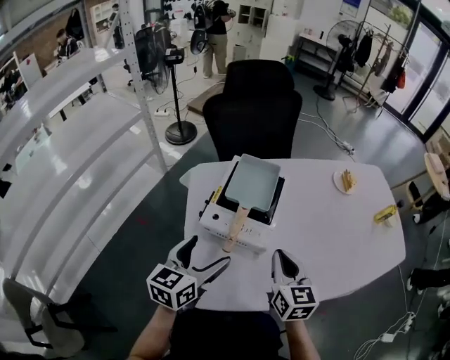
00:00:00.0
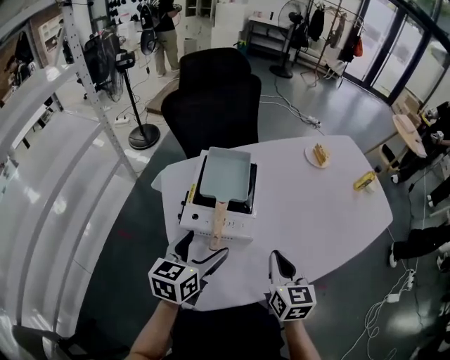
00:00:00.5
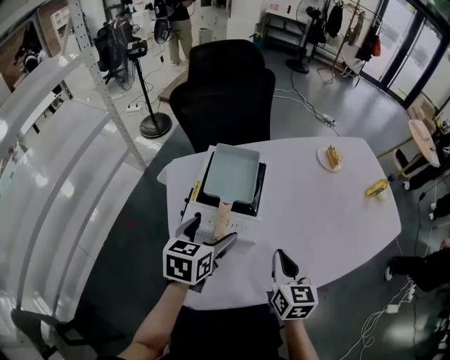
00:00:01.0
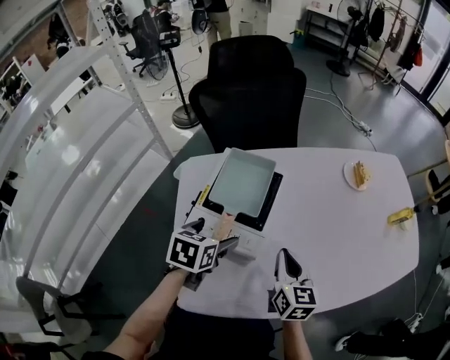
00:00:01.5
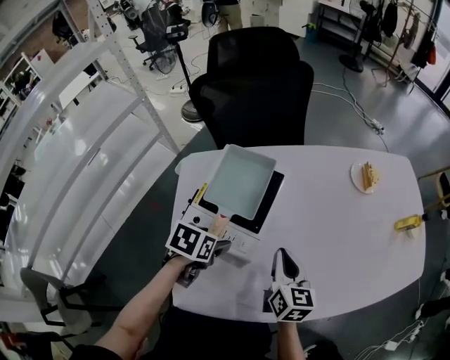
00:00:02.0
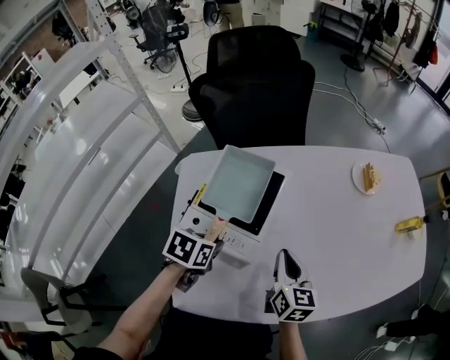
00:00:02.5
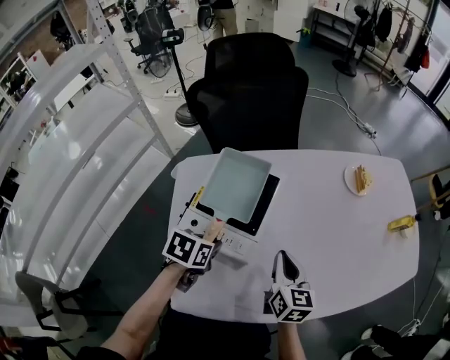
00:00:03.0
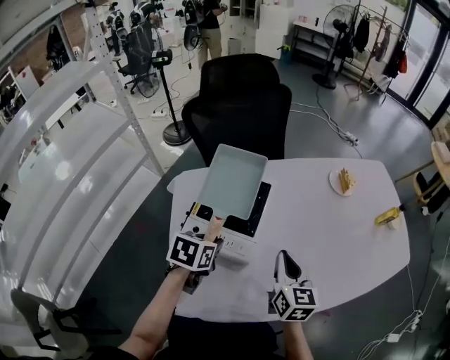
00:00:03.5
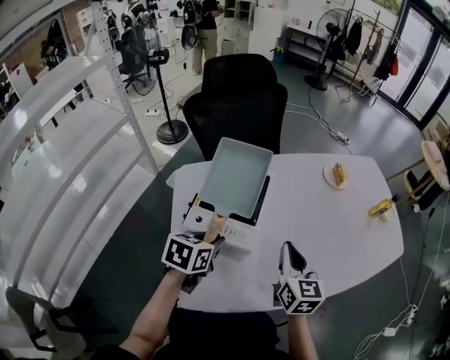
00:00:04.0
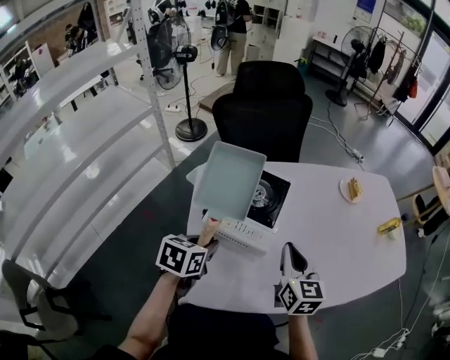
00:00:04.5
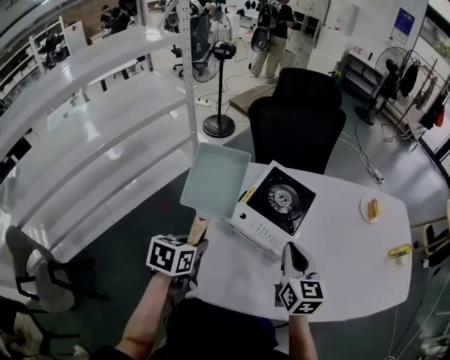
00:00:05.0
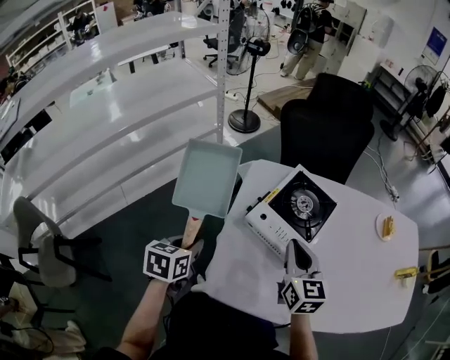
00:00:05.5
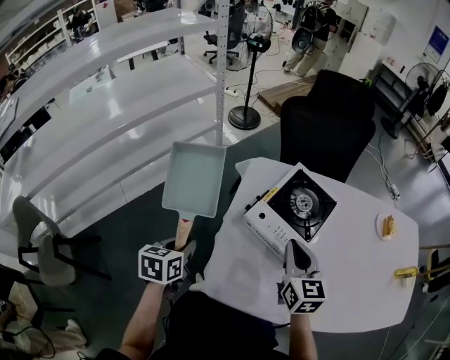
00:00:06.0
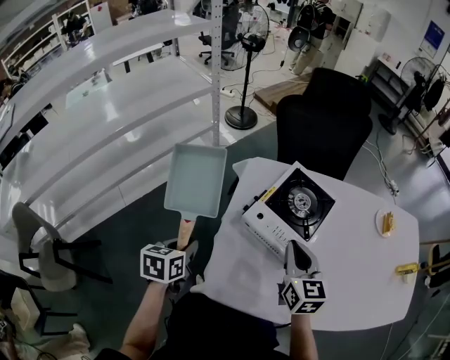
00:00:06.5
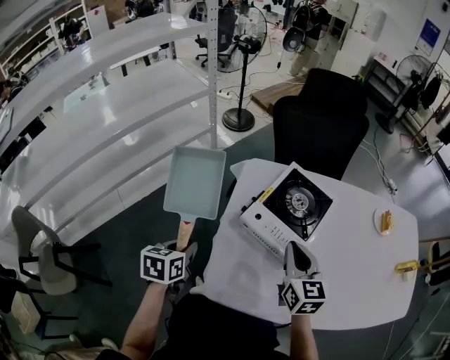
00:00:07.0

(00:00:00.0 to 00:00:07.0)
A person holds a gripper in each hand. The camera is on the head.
00:00:00.0 - 00:00:02.0: The right gripper goes approximately 15 cm forward, downward and to the right. Meanwhile the left gripper travels downward and forward by about 15 cm, and angles its fingers downward, by some 50 degrees.
00:00:02.0 - 00:00:03.5: The left gripper closes up; the right gripper moves upward, roughly 5 cm.
00:00:03.5 - 00:00:05.0: The left gripper travels to the left and backward by some 20 cm. The right gripper shifts roughly 10 cm to the left.
00:00:05.0 - 00:00:07.0: The left gripper goes roughly 5 cm to the left.

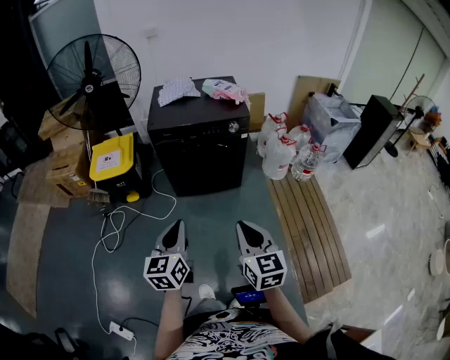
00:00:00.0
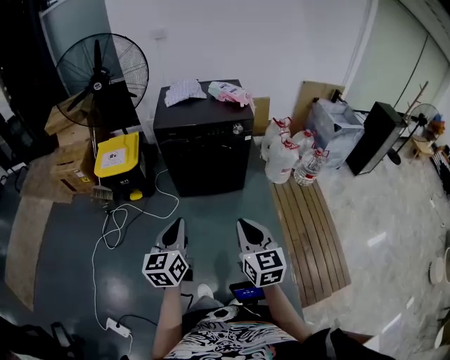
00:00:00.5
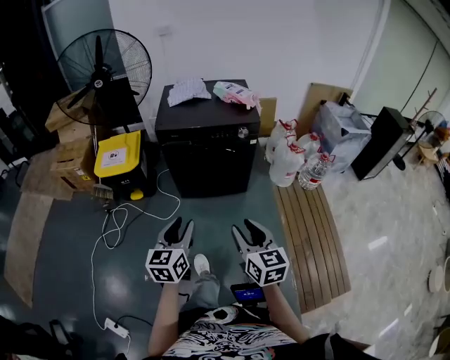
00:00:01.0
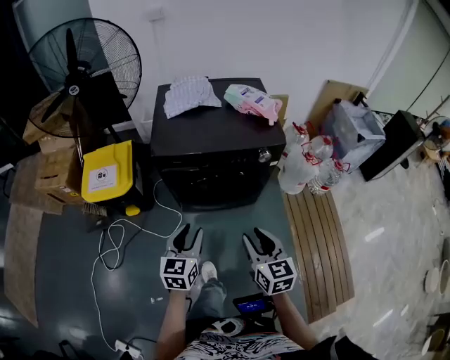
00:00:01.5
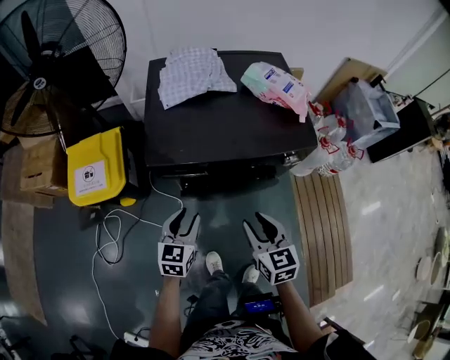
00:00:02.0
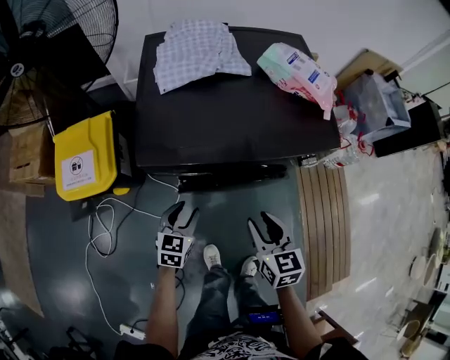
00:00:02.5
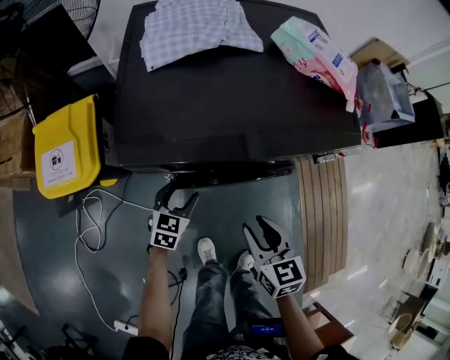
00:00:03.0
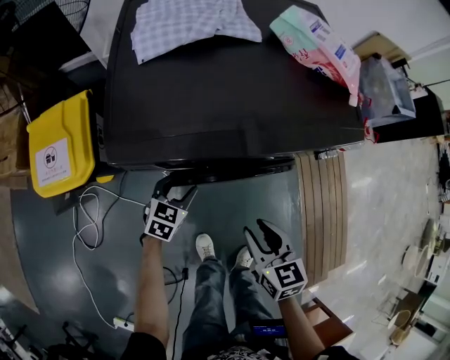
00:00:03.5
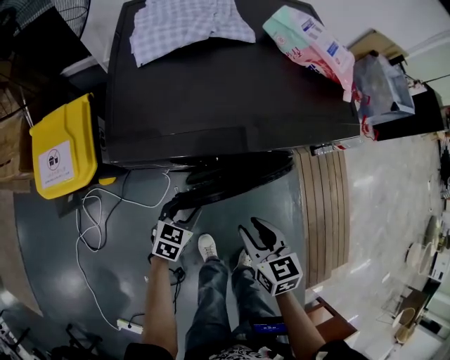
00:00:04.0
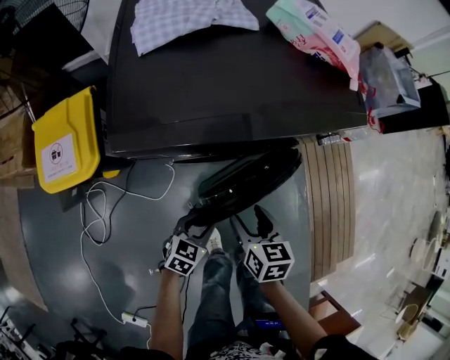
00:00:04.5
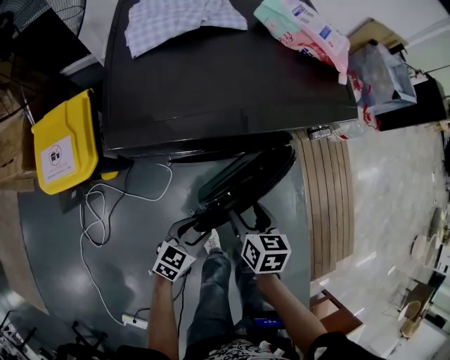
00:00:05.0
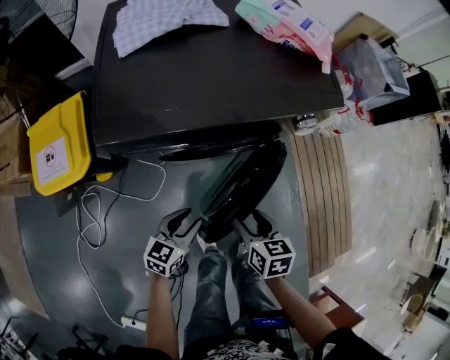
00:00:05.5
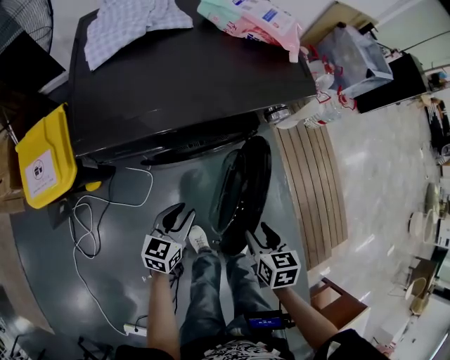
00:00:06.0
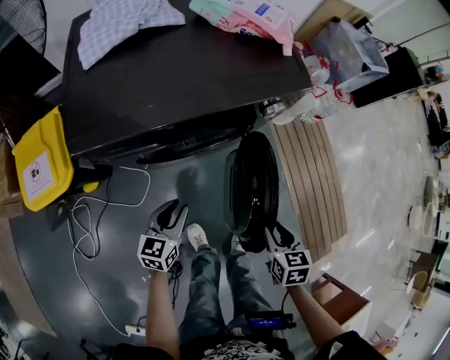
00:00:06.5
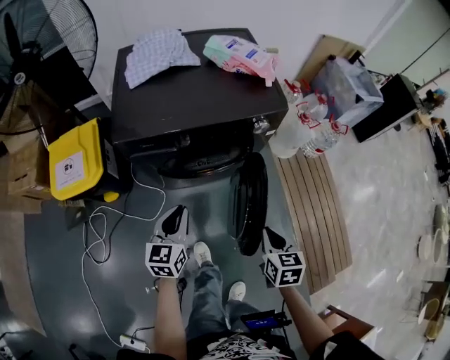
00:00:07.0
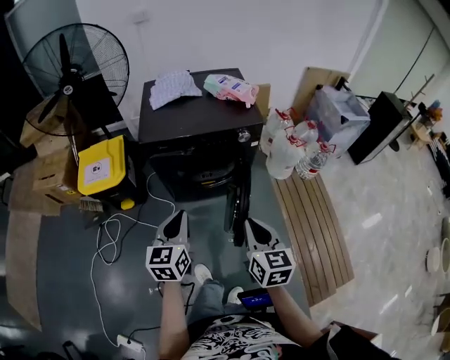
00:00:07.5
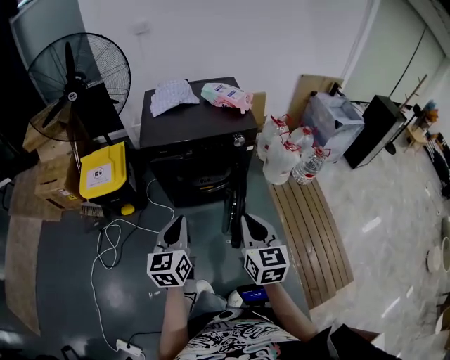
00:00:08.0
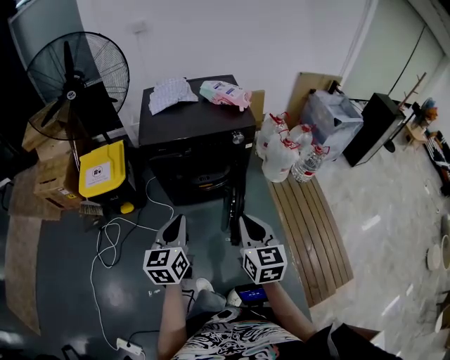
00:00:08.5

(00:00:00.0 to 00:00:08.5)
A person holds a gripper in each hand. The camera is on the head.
00:00:00.0 - 00:00:02.0: Both grippers are carried forward, about 40 cm. The right gripper opens up. The left gripper heads downward, covering roughly 20 cm, swivels about 20 degrees, and opens.
00:00:02.0 - 00:00:04.0: The left gripper moves downward, approximately 20 cm, and swivels approximately 20 degrees. Meanwhile the right gripper heads downward, covering approximately 15 cm.
00:00:04.0 - 00:00:06.5: The right gripper moves to the right and backward, roughly 20 cm, rotates some 30 degrees, and opens and closes again. Meanwhile the left gripper moves to the right and upward, some 10 cm.
00:00:06.5 - 00:00:08.5: The grippers both shift upward and backward by roughly 35 cm. The left gripper changes its angle by some 30 degrees, and closes its fingers. Meanwhile the right gripper tilts its fingers some 40 degrees upward, and closes its fingers.

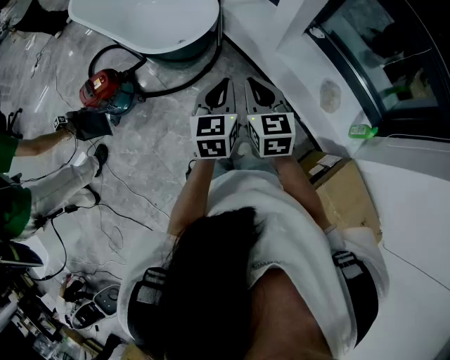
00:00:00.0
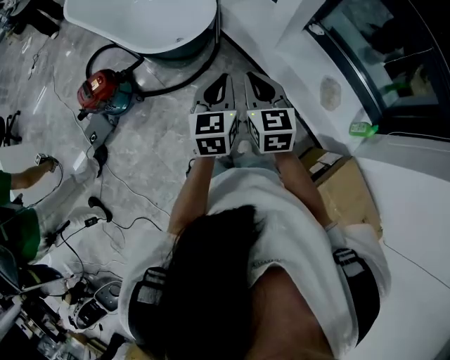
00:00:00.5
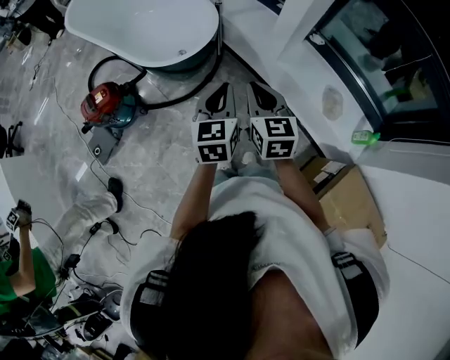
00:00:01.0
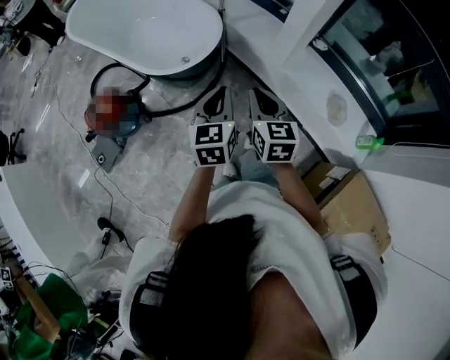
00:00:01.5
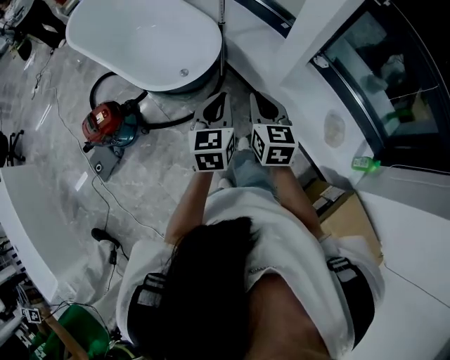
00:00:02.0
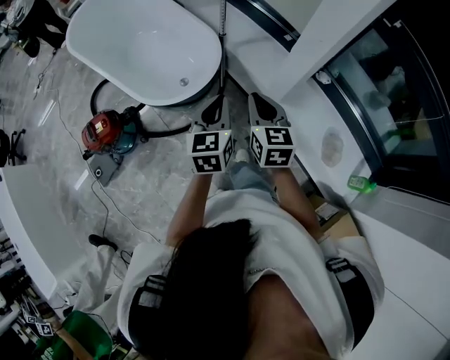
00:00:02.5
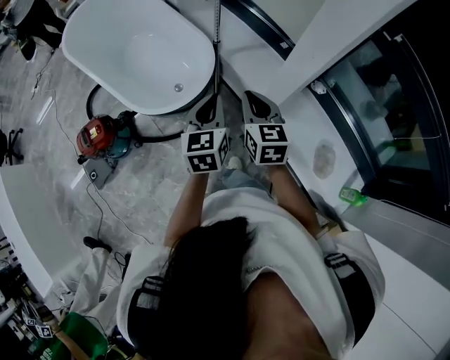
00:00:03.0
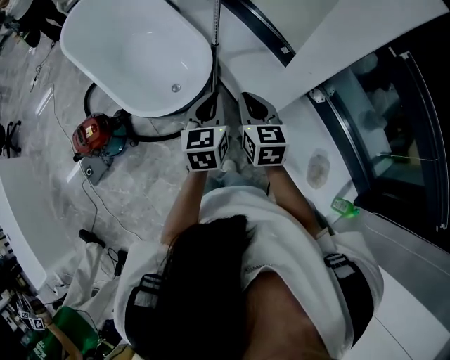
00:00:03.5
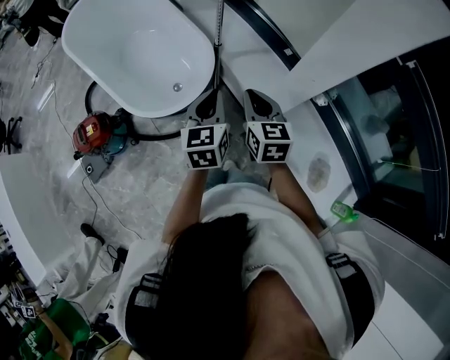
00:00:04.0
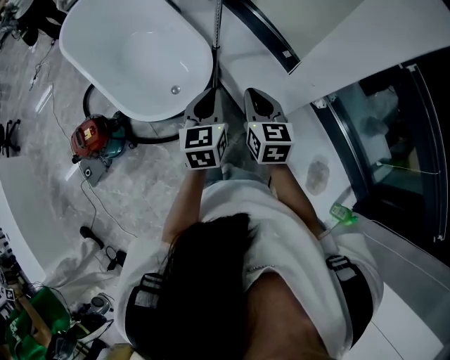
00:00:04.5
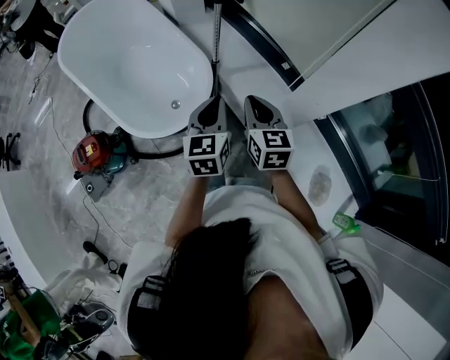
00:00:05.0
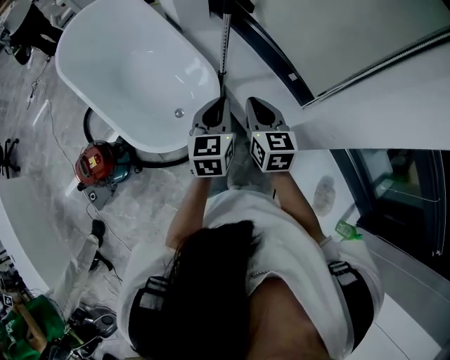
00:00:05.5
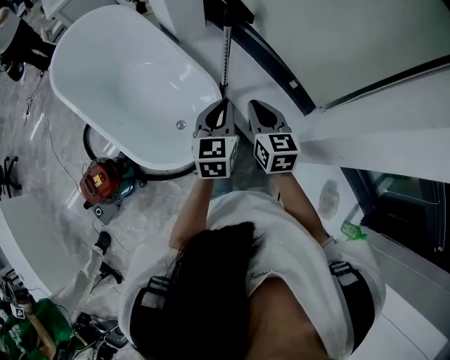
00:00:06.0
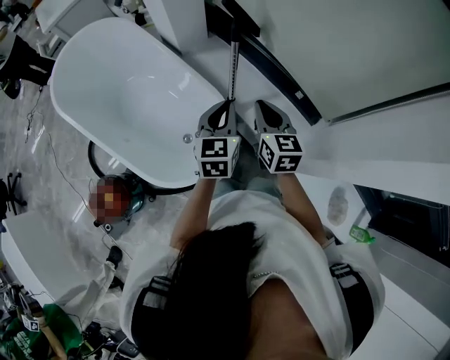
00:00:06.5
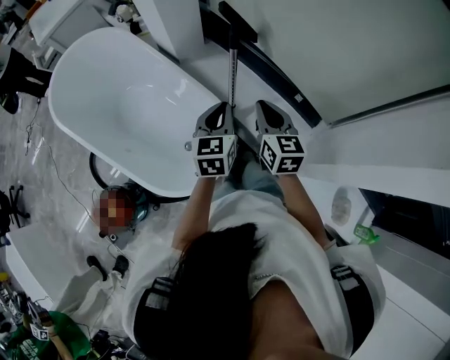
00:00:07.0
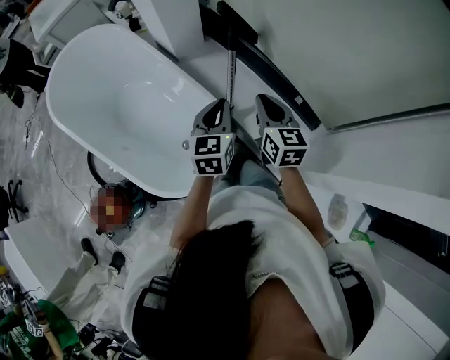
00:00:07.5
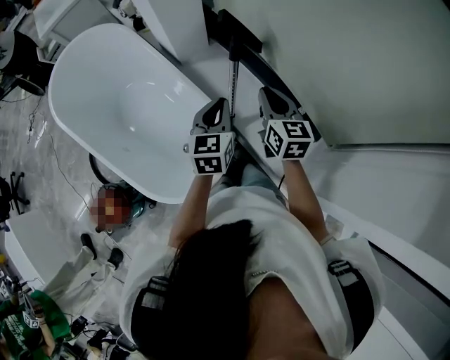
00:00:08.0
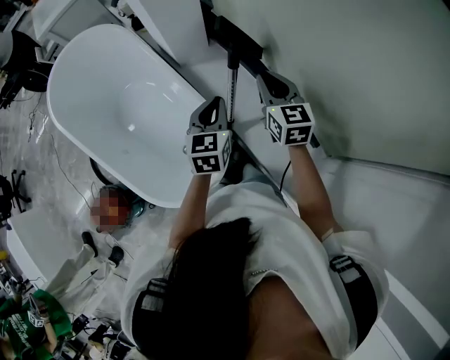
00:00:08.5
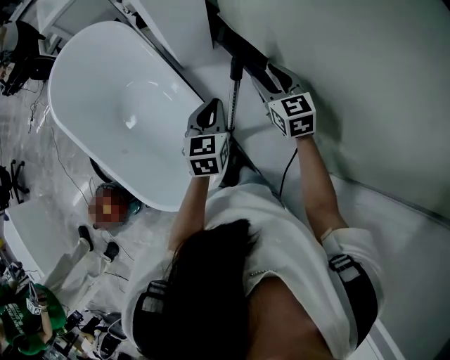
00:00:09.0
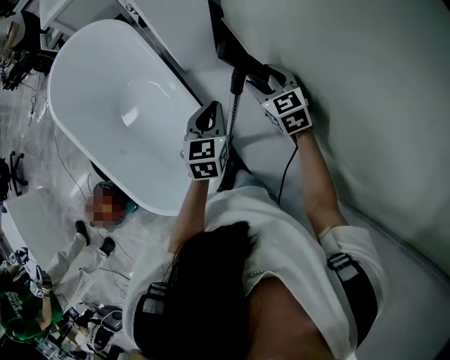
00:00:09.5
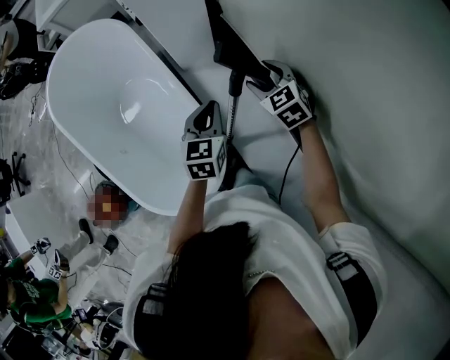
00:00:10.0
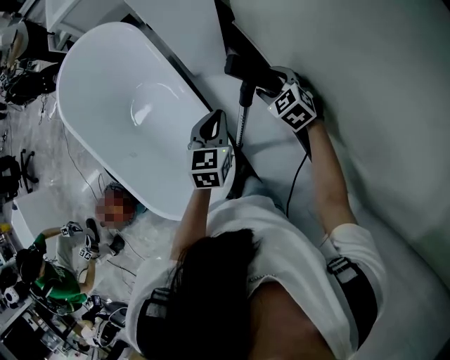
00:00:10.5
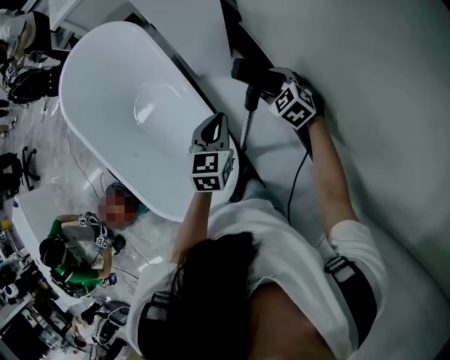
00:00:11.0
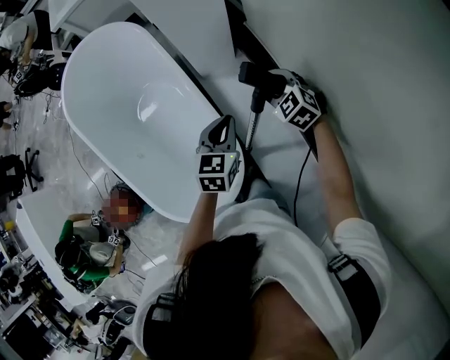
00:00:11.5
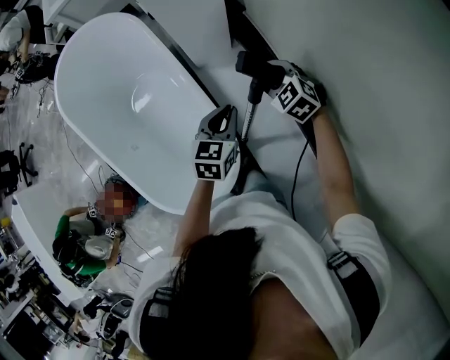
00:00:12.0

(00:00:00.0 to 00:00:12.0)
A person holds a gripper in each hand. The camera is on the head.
00:00:00.0 - 00:00:02.0: The grippers both shift forward by about 15 cm.
00:00:02.0 - 00:00:04.0: Both grippers move forward, some 20 cm.
00:00:04.0 - 00:00:06.0: The two grippers go some 20 cm forward.
00:00:06.0 - 00:00:08.0: The two grippers go approximately 20 cm forward.
00:00:08.0 - 00:00:10.0: The grippers both shift forward by about 15 cm. The right gripper swivels roughly 50 degrees, and opens its fingers.
00:00:10.0 - 00:00:12.0: The right gripper shifts by approximately 5 cm.
